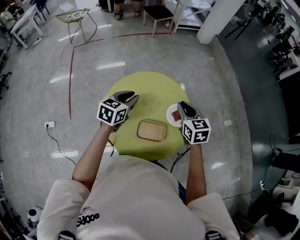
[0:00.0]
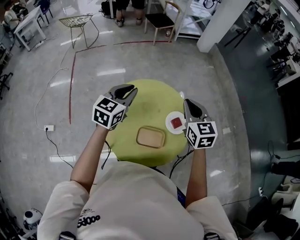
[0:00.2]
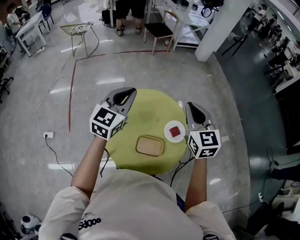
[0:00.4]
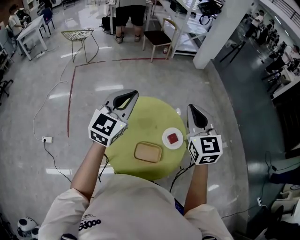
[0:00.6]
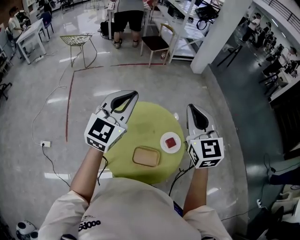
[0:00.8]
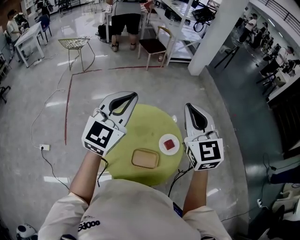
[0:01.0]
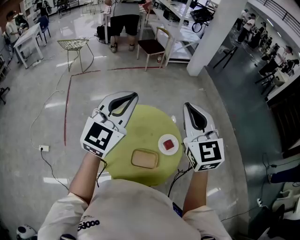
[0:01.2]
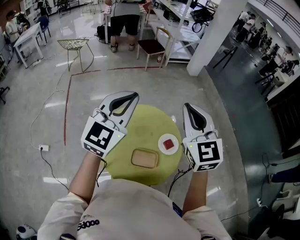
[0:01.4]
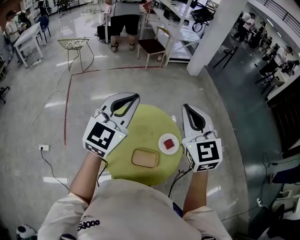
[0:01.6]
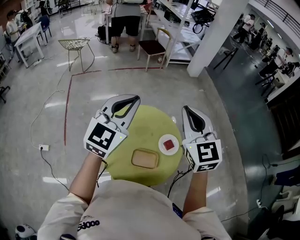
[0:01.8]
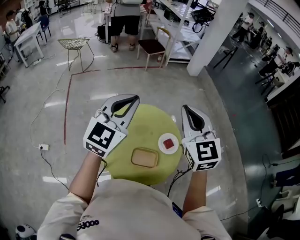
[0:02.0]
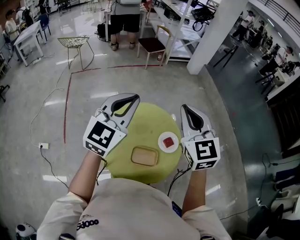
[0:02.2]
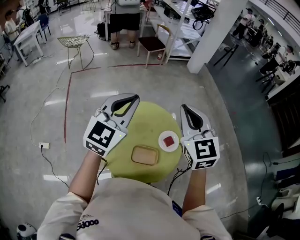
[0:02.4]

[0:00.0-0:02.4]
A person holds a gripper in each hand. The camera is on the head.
0:00.0 to 0:01.2: The two grippers go approximately 30 cm upward. The left gripper tips its fingers upward by about 30 degrees, and closes its fingers. Meanwhile the right gripper turns by roughly 30 degrees.
0:01.2 to 0:02.4: There are only small adjustments of the grippers.

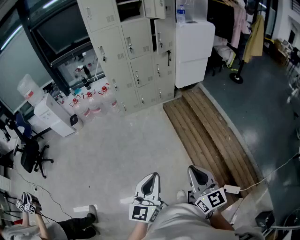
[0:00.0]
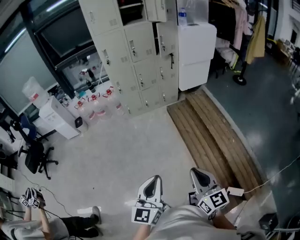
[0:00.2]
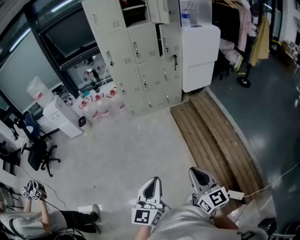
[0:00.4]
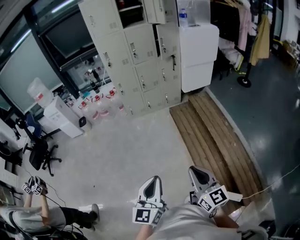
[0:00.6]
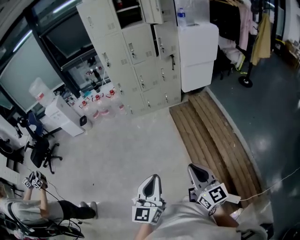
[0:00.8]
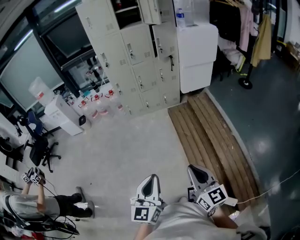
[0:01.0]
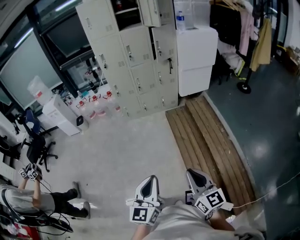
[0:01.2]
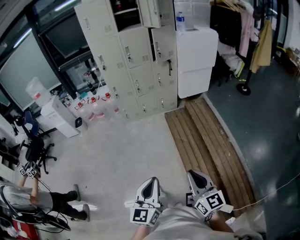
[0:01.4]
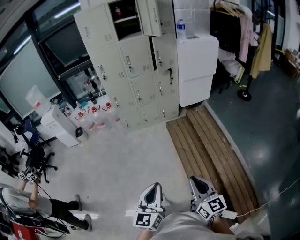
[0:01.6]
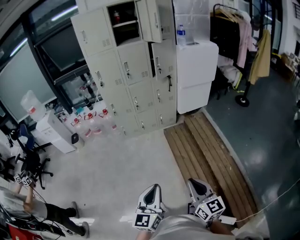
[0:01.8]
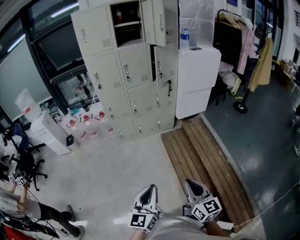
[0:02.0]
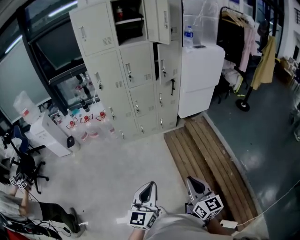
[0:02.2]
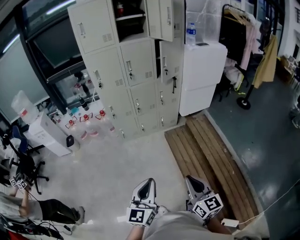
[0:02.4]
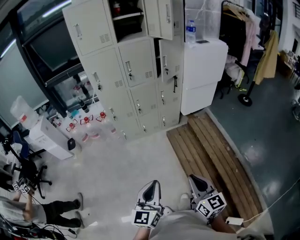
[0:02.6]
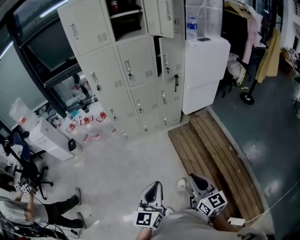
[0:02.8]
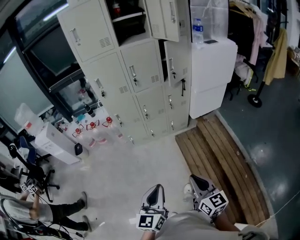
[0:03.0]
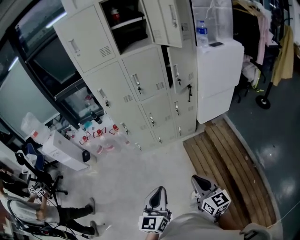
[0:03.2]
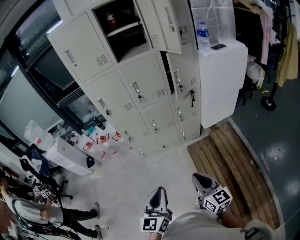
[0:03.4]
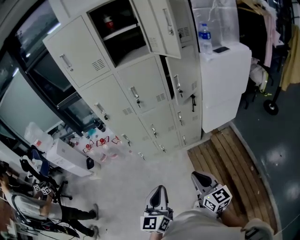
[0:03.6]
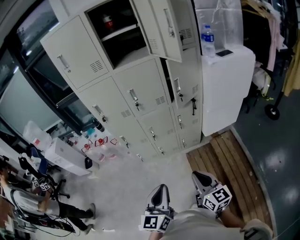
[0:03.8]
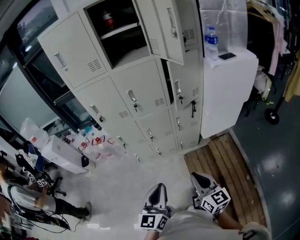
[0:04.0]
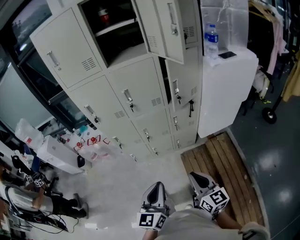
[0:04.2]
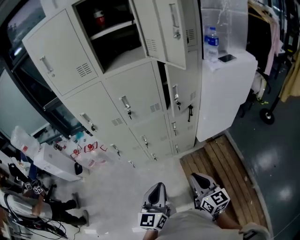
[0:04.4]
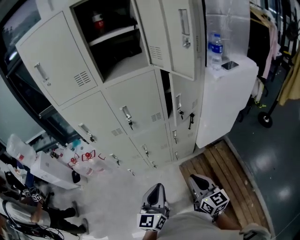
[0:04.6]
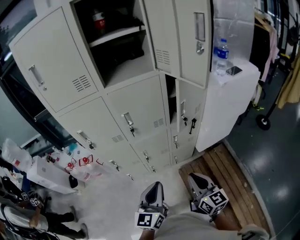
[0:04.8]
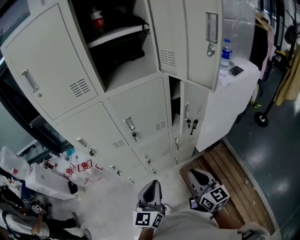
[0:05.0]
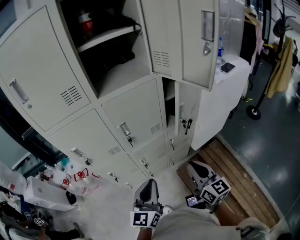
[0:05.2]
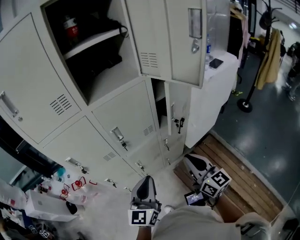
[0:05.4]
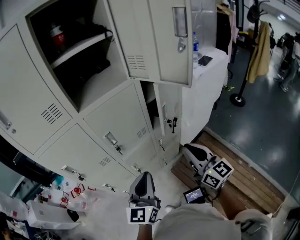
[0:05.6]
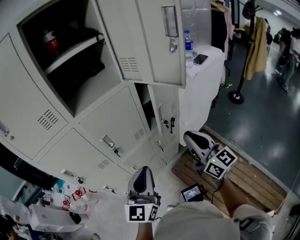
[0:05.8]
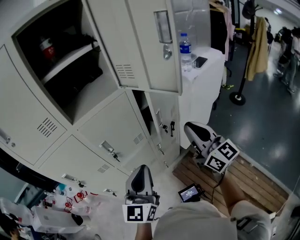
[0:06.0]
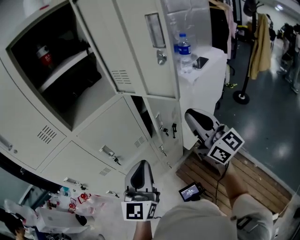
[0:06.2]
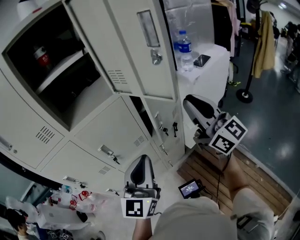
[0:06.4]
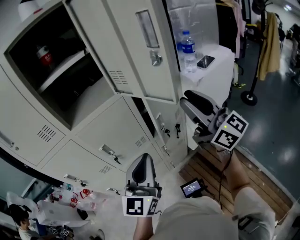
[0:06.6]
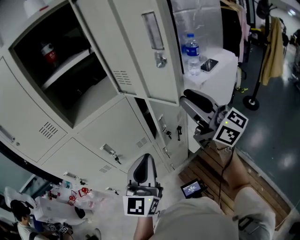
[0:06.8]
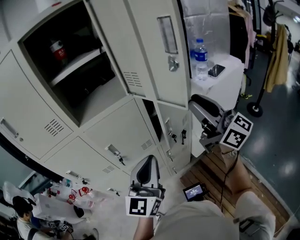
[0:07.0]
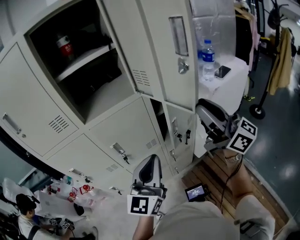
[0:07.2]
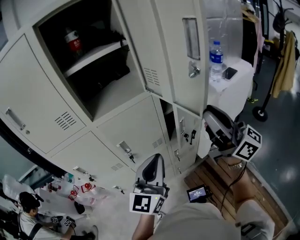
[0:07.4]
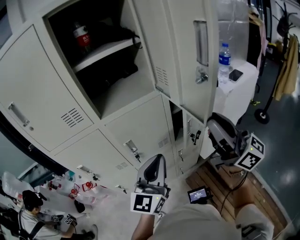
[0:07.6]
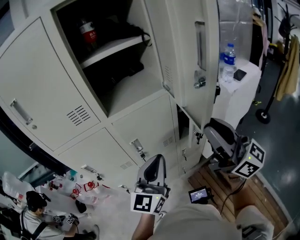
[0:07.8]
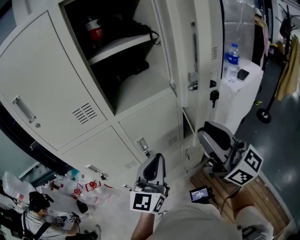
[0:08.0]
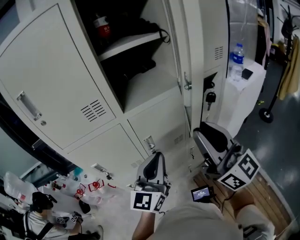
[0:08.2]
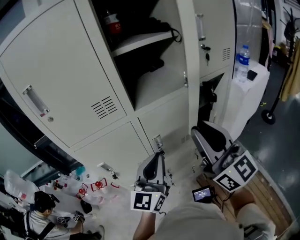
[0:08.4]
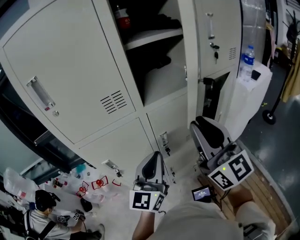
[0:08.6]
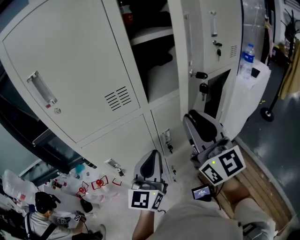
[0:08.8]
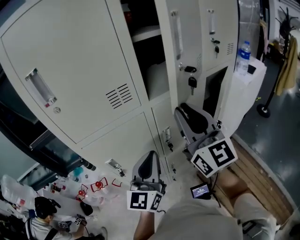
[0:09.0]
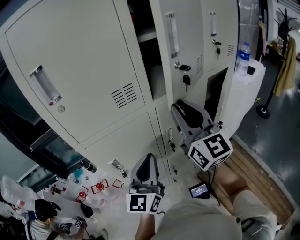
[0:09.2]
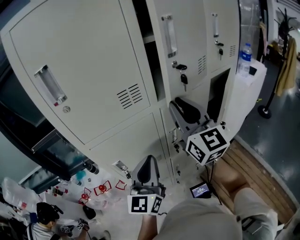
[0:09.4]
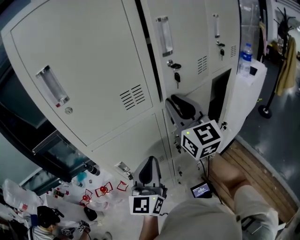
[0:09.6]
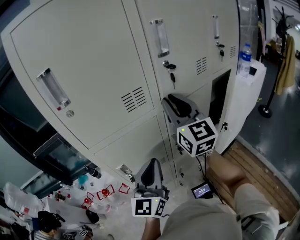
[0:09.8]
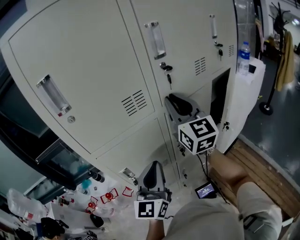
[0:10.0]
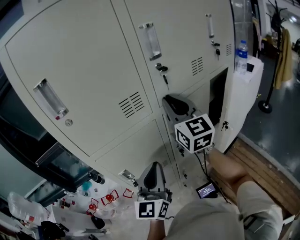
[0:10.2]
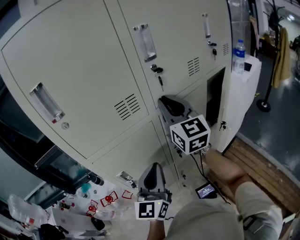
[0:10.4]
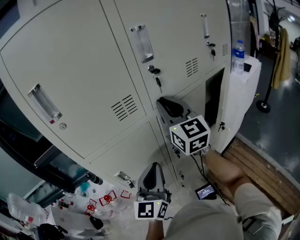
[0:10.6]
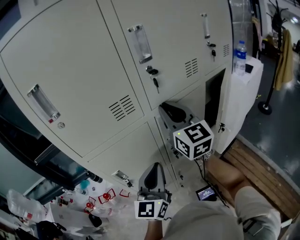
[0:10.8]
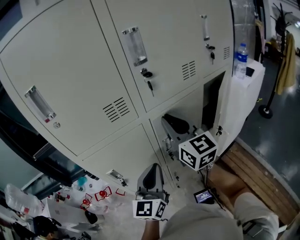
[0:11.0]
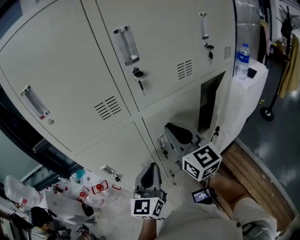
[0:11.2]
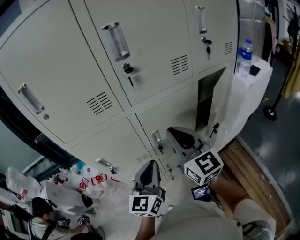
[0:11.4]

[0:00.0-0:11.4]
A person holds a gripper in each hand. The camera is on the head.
0:00.0 to 0:01.4: The grippers both shift to the right by about 15 cm.
0:01.4 to 0:02.8: Both grippers travel together forward, about 30 cm.
0:02.8 to 0:04.2: The two grippers go some 35 cm forward.
0:04.2 to 0:05.6: The right gripper shifts approximately 30 cm forward and upward, and changes its angle by about 20 degrees; the left gripper shifts roughly 30 cm forward, and changes its angle by some 20 degrees.
0:05.6 to 0:07.2: The right gripper goes approximately 25 cm upward, forward and to the right, and rotates roughly 30 degrees. Meanwhile the left gripper moves upward, to the right and forward, roughly 15 cm.
0:07.2 to 0:08.6: The two grippers go about 25 cm to the left. The right gripper rotates approximately 30 degrees.
0:08.6 to 0:10.0: The right gripper heads forward and to the left, covering some 15 cm, while the left gripper travels to the left by about 10 cm.
0:10.0 to 0:11.4: The right gripper moves downward, backward and to the right, some 15 cm; the left gripper goes approximately 10 cm to the right.

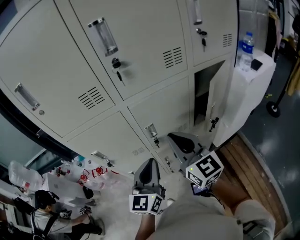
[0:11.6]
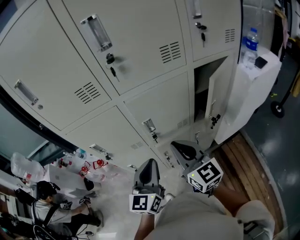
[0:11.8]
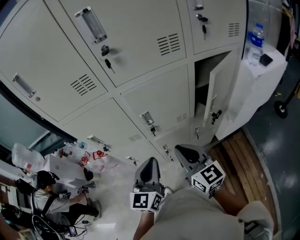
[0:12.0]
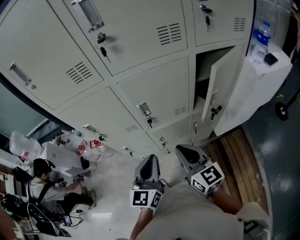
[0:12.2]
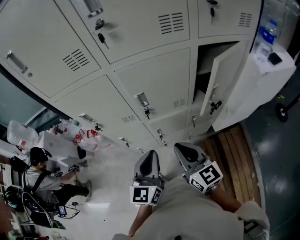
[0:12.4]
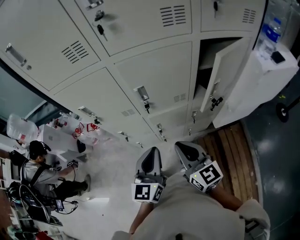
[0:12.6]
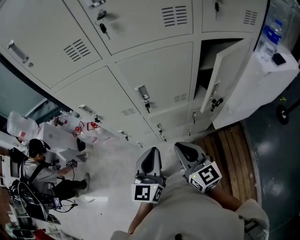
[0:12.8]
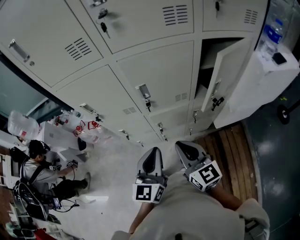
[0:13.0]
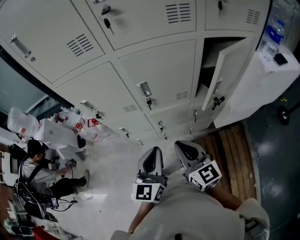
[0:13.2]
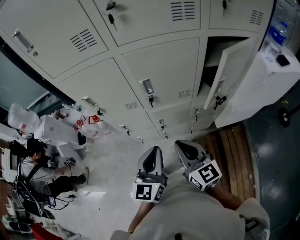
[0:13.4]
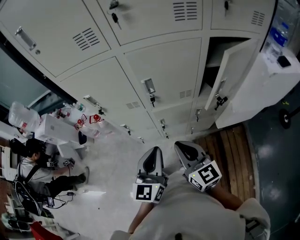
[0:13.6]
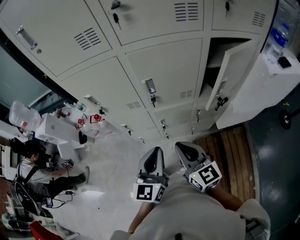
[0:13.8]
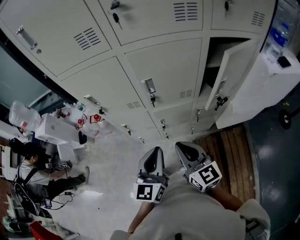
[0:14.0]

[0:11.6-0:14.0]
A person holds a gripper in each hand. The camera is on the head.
0:11.6 to 0:12.8: The left gripper is displaced backward and downward by about 10 cm. Meanwhile the right gripper goes roughly 20 cm downward and backward.
0:12.8 to 0:14.0: The grippers make only small movements.

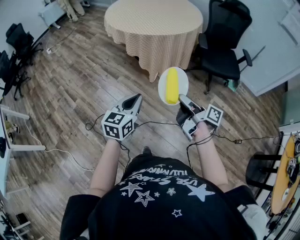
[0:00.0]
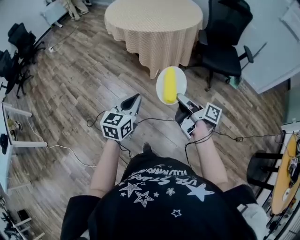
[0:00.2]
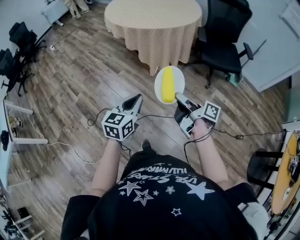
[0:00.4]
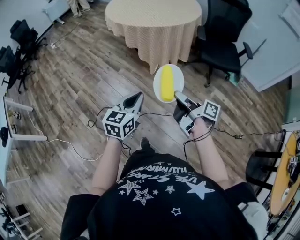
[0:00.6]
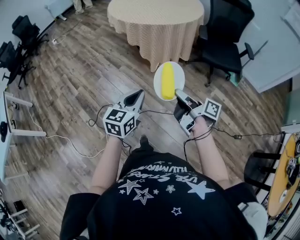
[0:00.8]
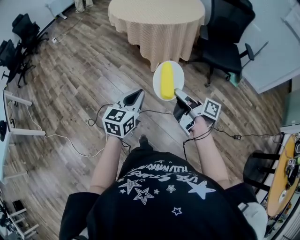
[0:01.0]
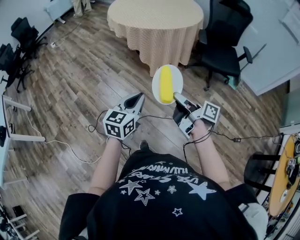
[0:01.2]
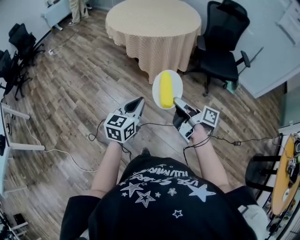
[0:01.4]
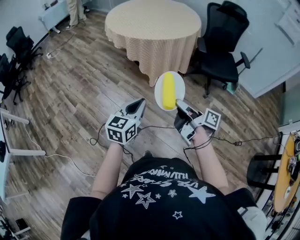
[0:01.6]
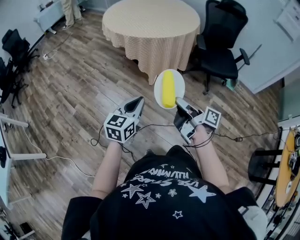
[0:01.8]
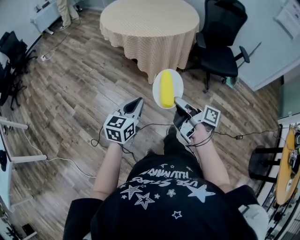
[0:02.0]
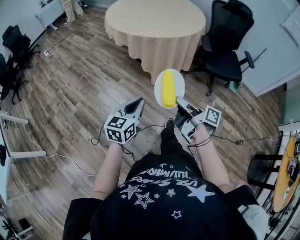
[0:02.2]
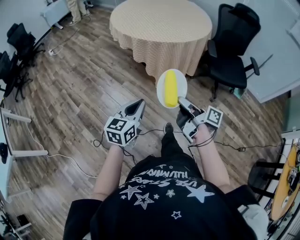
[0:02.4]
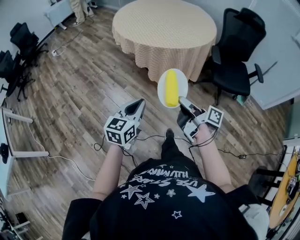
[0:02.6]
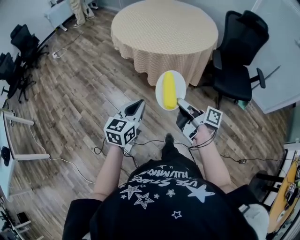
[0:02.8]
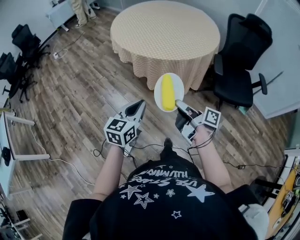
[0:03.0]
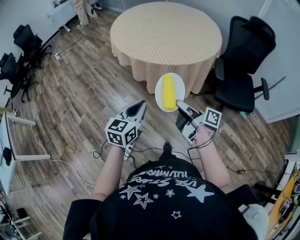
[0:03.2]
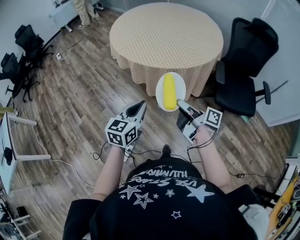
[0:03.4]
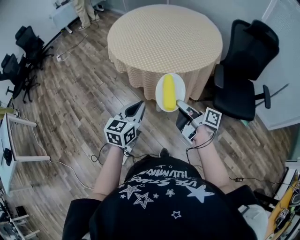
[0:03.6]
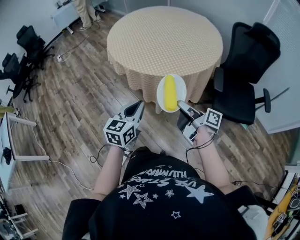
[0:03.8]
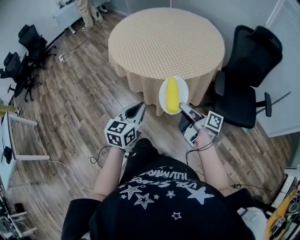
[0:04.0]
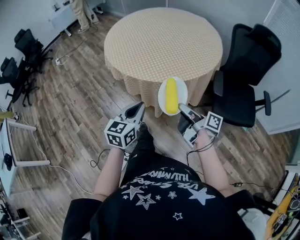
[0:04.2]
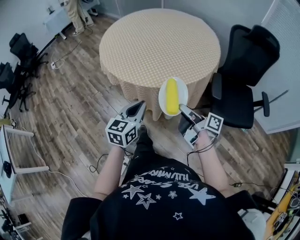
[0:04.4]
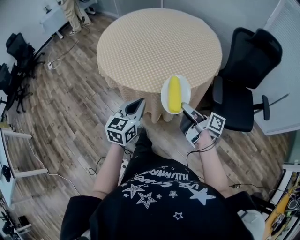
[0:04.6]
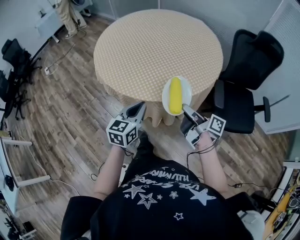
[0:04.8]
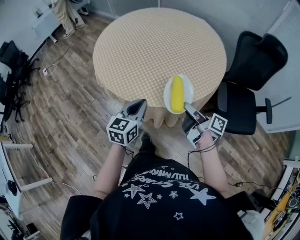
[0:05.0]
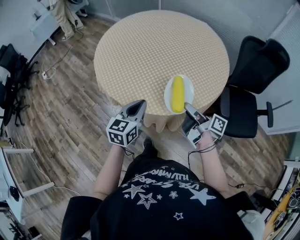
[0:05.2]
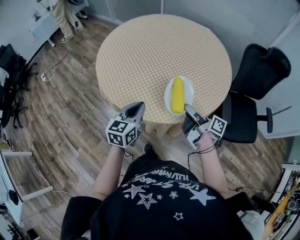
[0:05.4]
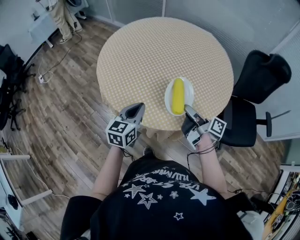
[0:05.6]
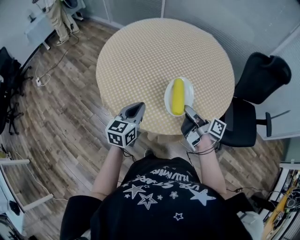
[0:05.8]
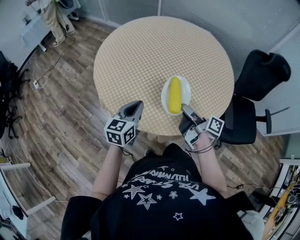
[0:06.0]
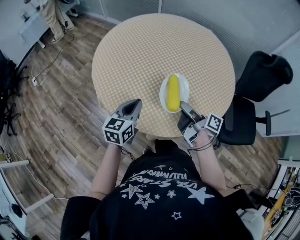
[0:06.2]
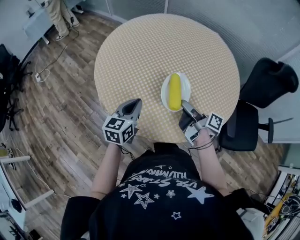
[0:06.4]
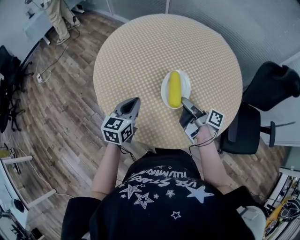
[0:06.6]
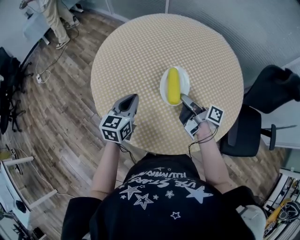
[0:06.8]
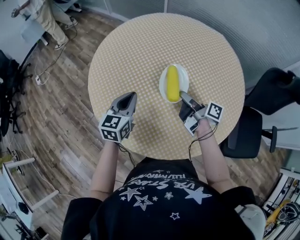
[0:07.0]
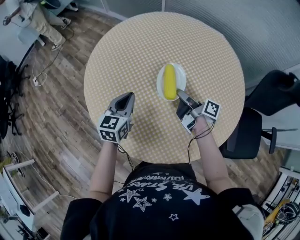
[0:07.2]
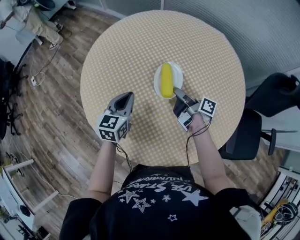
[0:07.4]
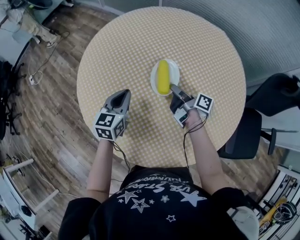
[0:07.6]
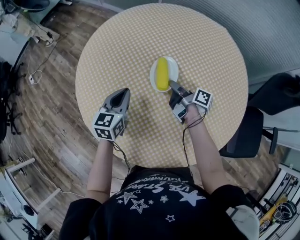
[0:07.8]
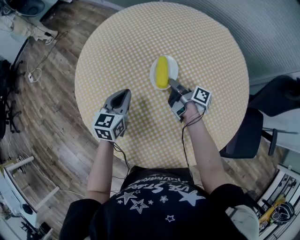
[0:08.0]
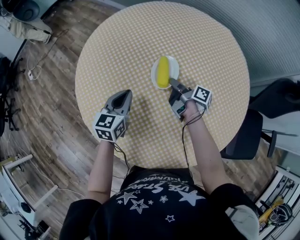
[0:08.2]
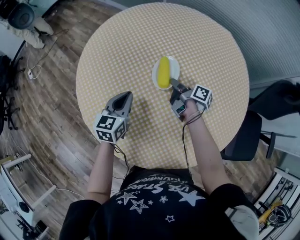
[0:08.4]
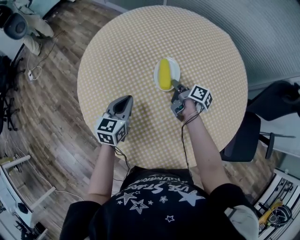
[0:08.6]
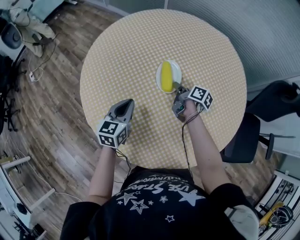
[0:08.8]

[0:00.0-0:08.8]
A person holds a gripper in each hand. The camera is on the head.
0:01.4 to 0:03.0: Both grippers travel together forward, approximately 25 cm.
0:03.0 to 0:04.4: The grippers both shift forward and to the right by roughly 20 cm.
0:04.4 to 0:05.8: The grippers both shift forward by about 30 cm.
0:05.8 to 0:07.4: Both grippers travel together forward, approximately 25 cm.
0:07.4 to 0:08.8: The right gripper is displaced downward by approximately 5 cm, and changes its angle by approximately 20 degrees.
